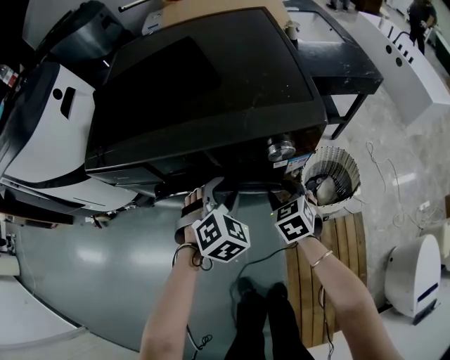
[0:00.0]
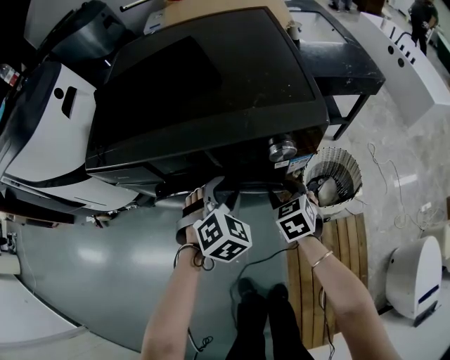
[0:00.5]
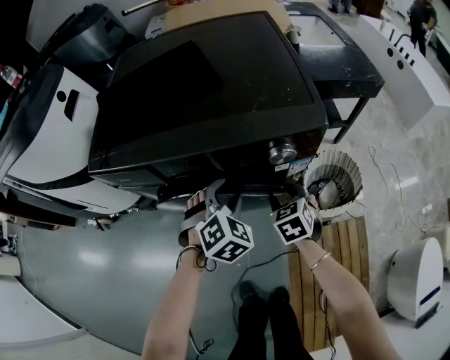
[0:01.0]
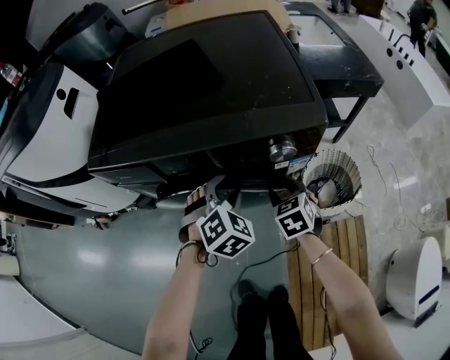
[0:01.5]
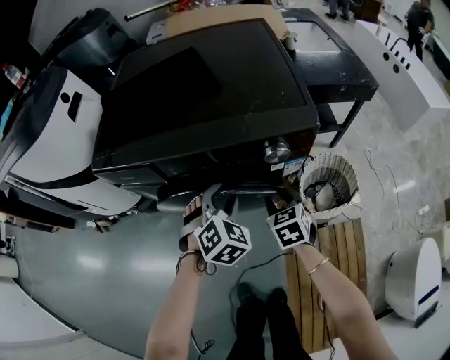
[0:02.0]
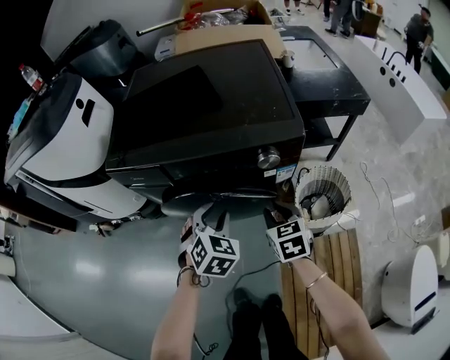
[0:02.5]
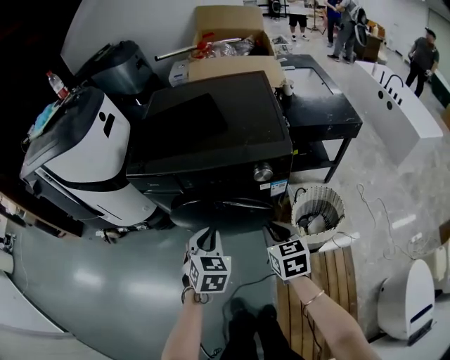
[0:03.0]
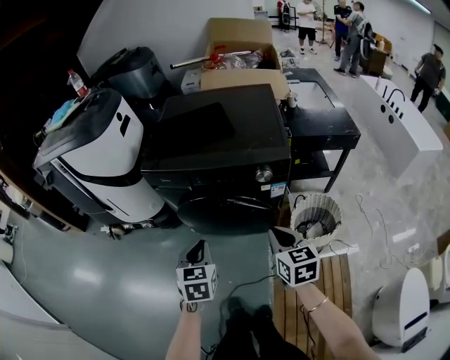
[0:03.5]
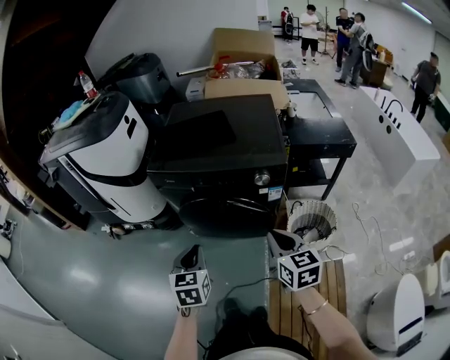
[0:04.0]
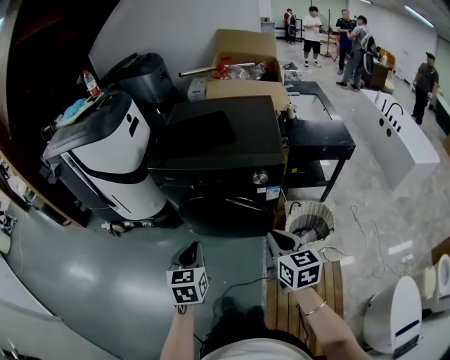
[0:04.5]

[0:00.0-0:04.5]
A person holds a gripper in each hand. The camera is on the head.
0:00.0 to 0:02.0: The grippers move only a little.
0:02.0 to 0:04.5: The right gripper is displaced upward and backward by roughly 40 cm, turns by roughly 30 degrees, and closes up. The left gripper shifts some 40 cm backward, upward and to the left, twists approximately 50 degrees counterclockwise, seen from behind, and closes up.

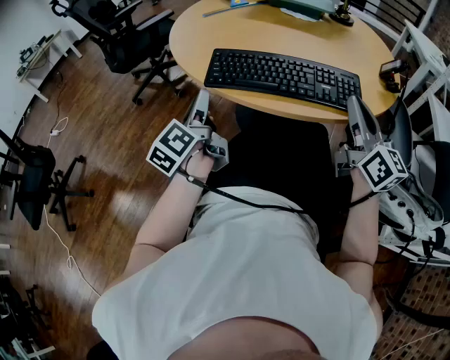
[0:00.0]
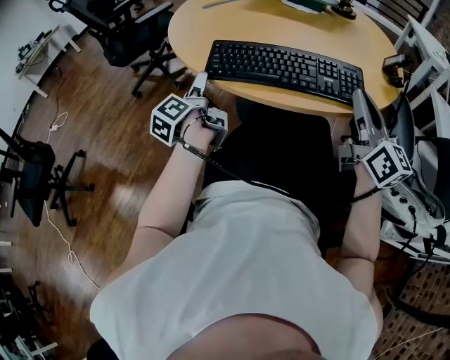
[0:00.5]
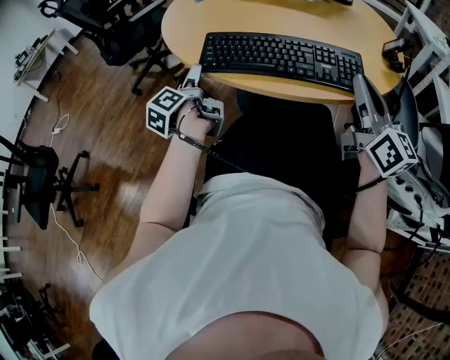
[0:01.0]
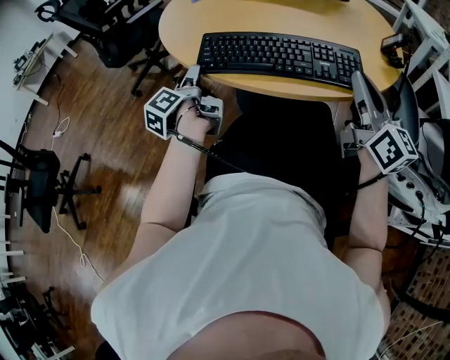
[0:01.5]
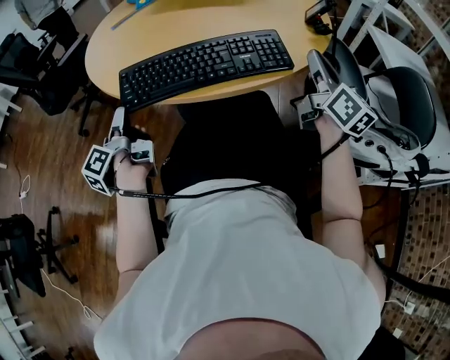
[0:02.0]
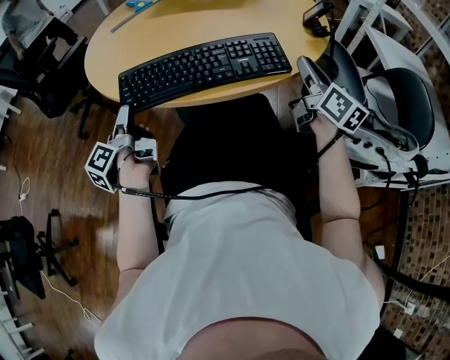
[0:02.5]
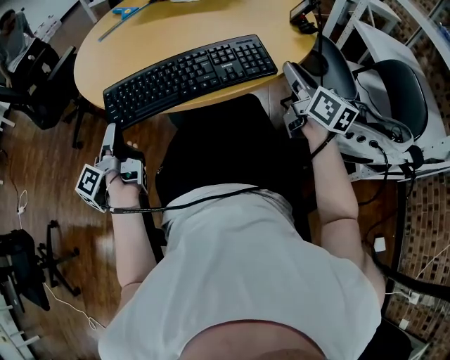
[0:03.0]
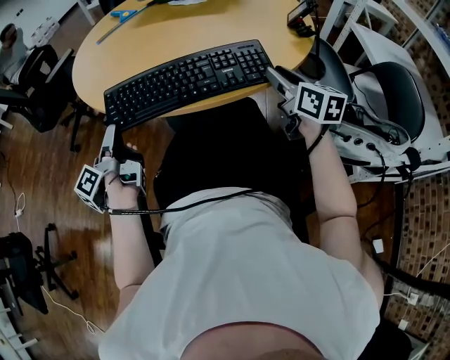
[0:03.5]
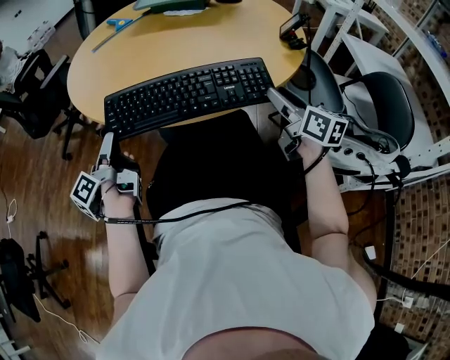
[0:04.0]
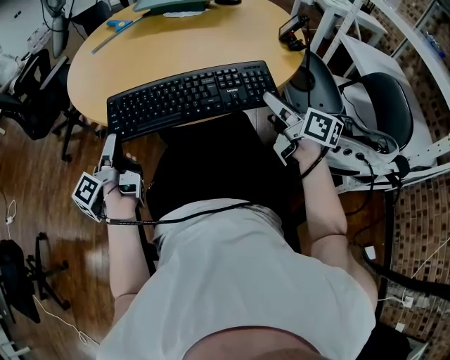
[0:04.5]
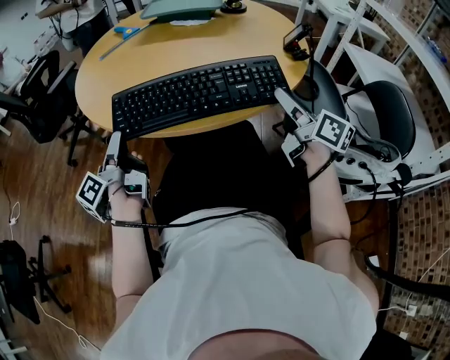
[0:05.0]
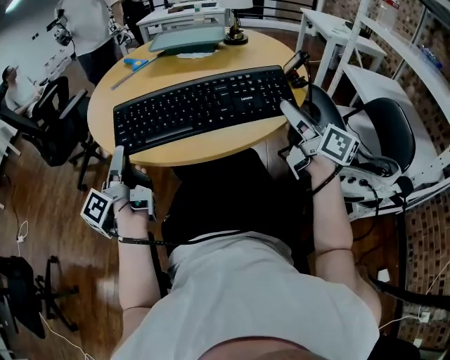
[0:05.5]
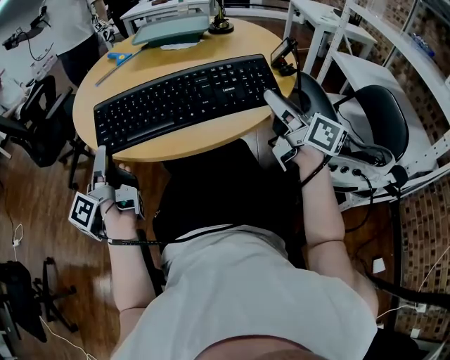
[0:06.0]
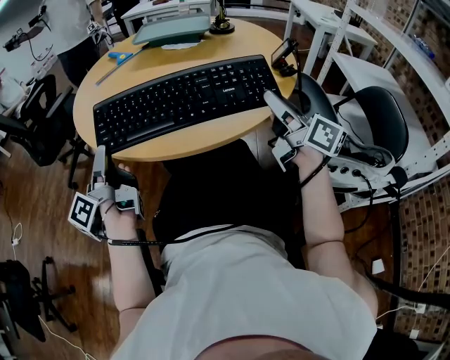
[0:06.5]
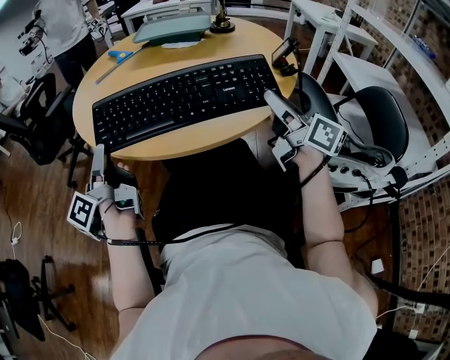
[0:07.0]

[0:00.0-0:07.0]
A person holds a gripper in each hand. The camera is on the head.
0:00.0 to 0:02.0: The right gripper shifts by about 10 cm, and changes its angle by approximately 20 degrees.
0:02.0 to 0:03.5: The right gripper goes approximately 5 cm downward, changes its angle by approximately 20 degrees, and opens.
0:03.5 to 0:05.0: The right gripper shifts by some 5 cm, and rotates about 20 degrees.
0:05.0 to 0:07.0: The right gripper goes approximately 5 cm upward.

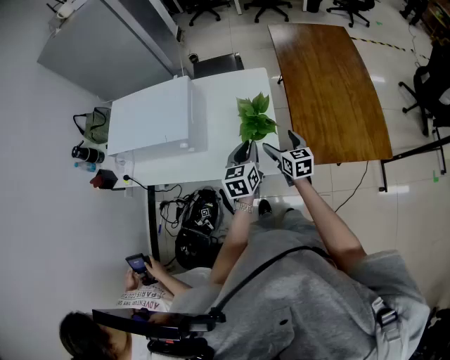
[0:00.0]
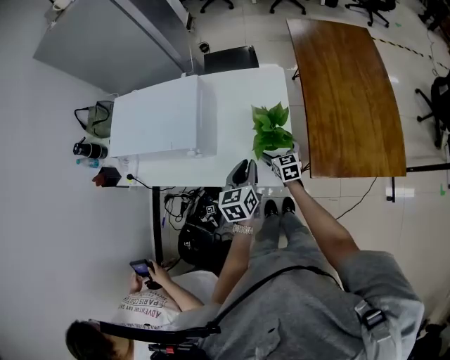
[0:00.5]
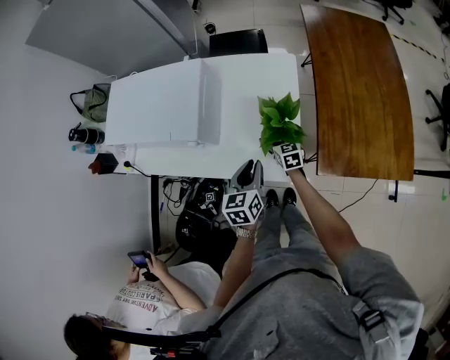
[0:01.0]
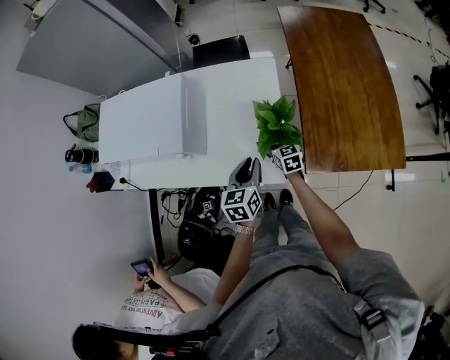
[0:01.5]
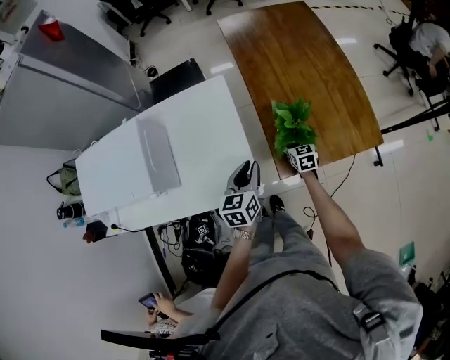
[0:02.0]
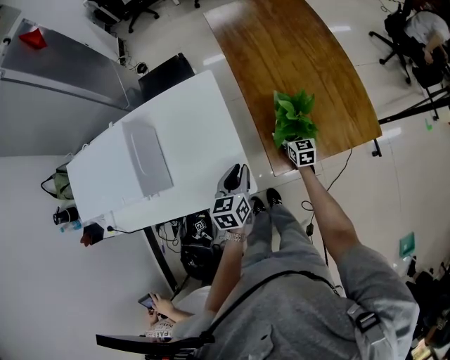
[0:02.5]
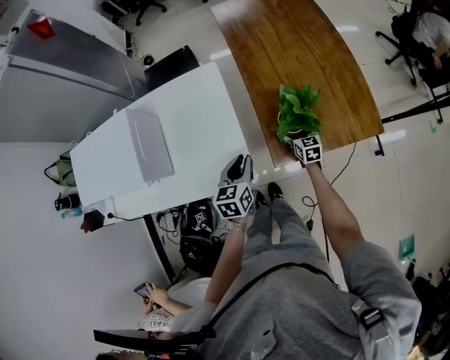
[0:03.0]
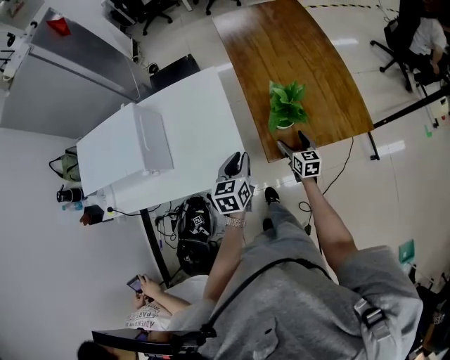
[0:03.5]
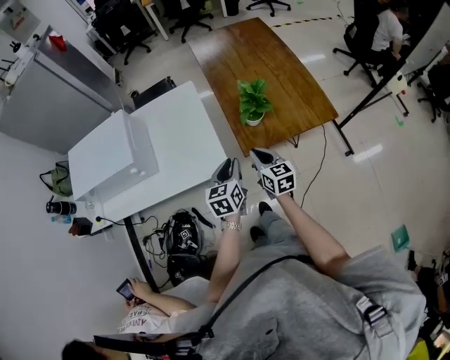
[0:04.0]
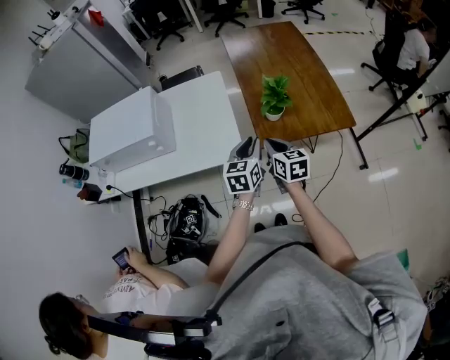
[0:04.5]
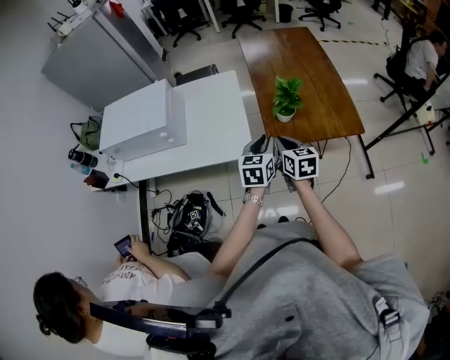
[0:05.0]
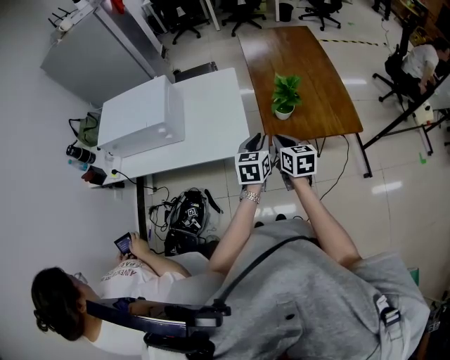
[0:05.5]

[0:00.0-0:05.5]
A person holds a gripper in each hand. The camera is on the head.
0:00.0 to 0:02.0: The right gripper travels to the right and downward by some 25 cm. The left gripper is displaced to the right by about 15 cm.
0:02.0 to 0:03.5: The right gripper shifts approximately 10 cm backward and to the right. The left gripper shifts some 5 cm backward.
0:03.5 to 0:05.5: The left gripper goes roughly 15 cm backward and upward. The right gripper heads upward, backward and to the left, covering roughly 30 cm, and closes up.

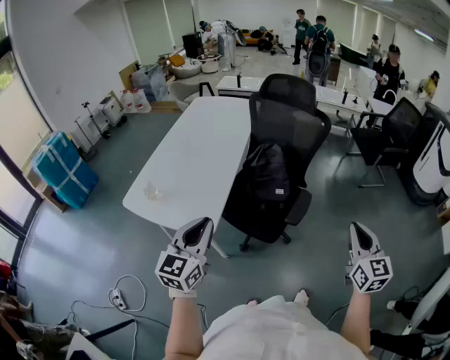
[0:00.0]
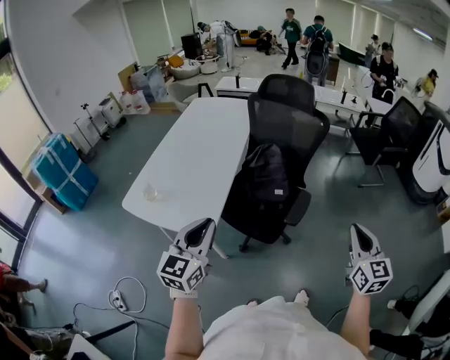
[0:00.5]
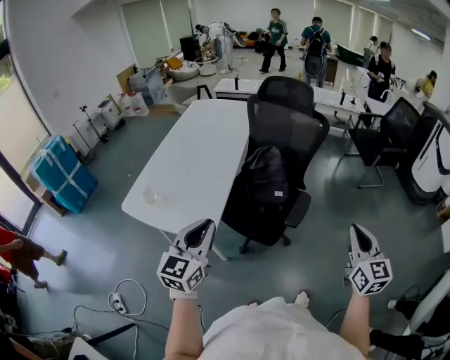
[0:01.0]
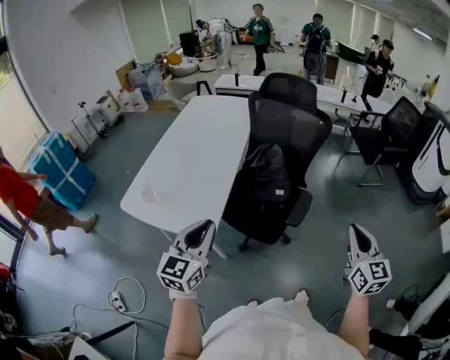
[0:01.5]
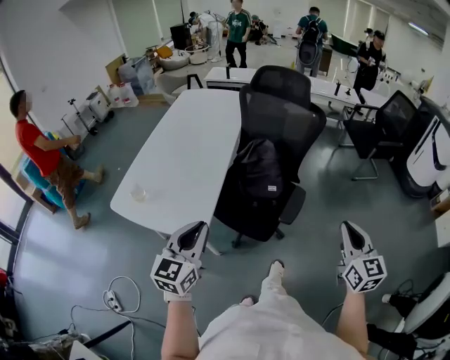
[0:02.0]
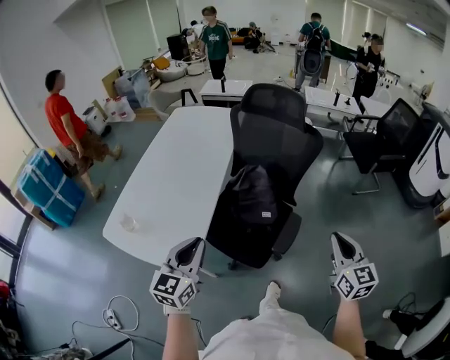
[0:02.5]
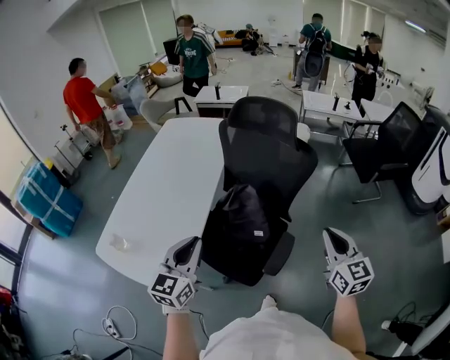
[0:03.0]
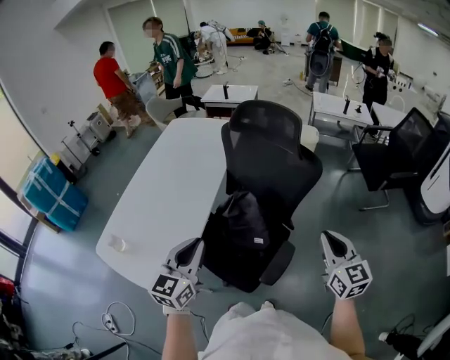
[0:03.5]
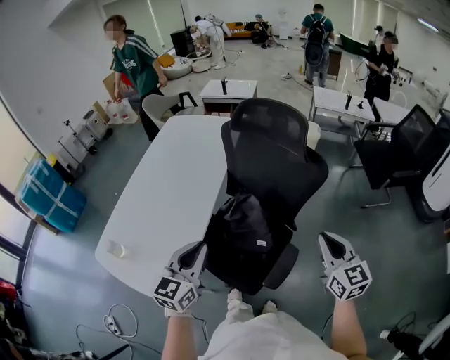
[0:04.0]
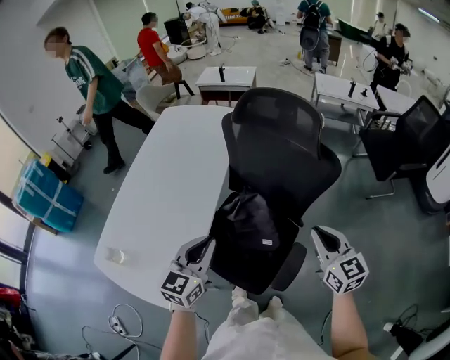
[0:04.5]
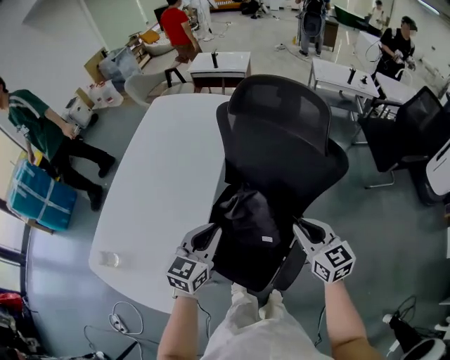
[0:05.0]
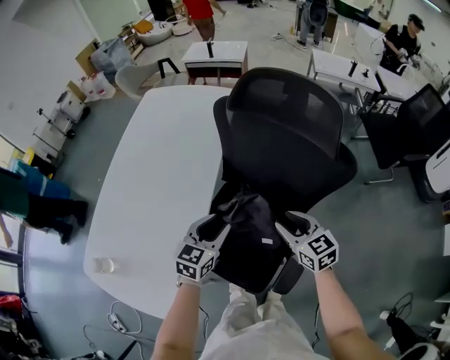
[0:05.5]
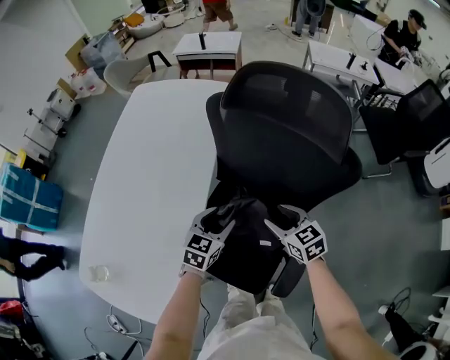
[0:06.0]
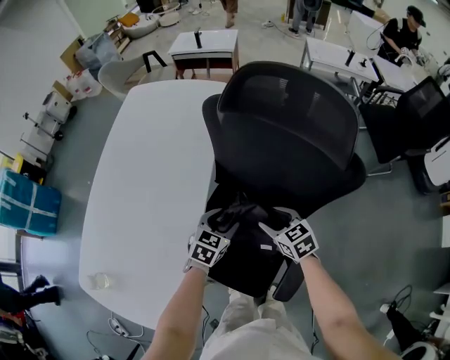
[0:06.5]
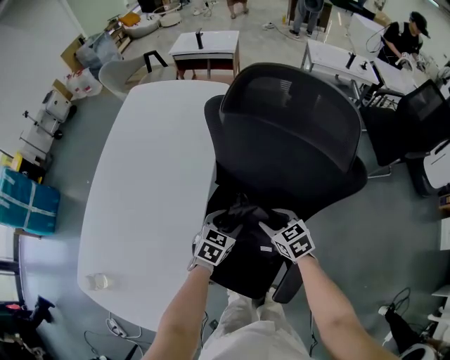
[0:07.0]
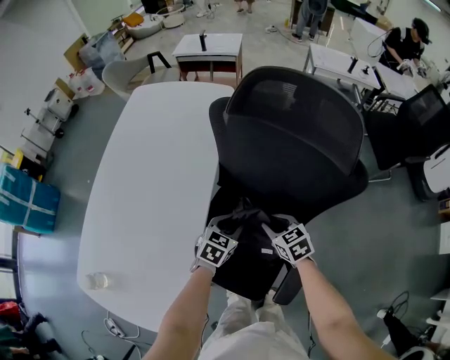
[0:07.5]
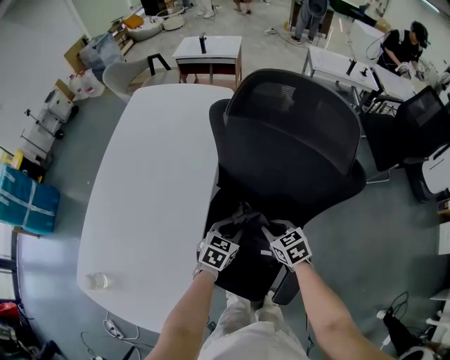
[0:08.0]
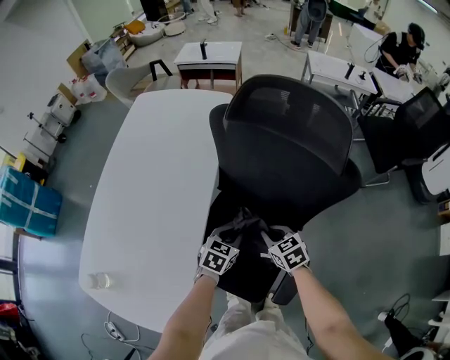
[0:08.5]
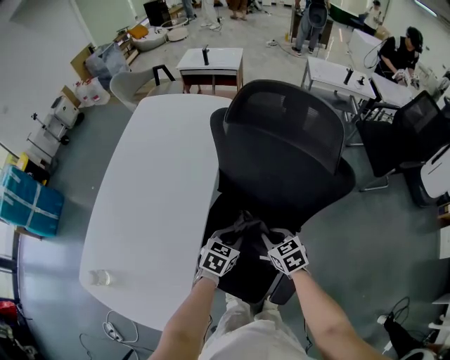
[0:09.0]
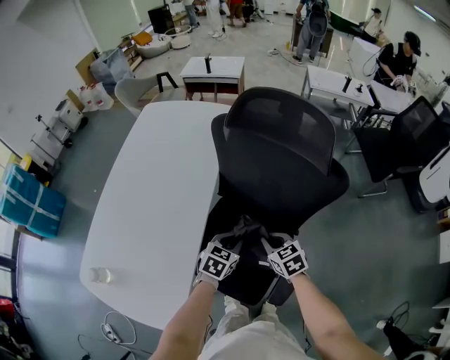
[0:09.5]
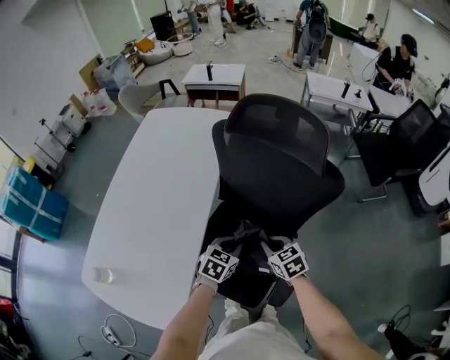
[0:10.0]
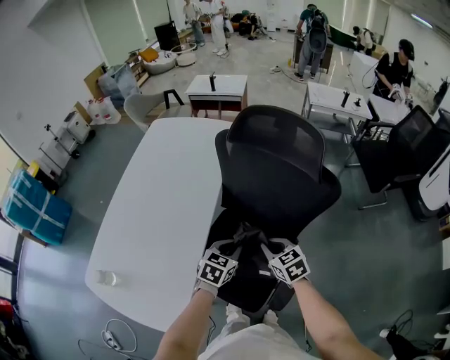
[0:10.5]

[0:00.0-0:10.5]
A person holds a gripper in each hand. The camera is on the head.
0:00.0 to 0:02.0: The grippers move only a little.
0:02.0 to 0:04.0: Both grippers move forward, some 25 cm.
0:04.0 to 0:06.5: The right gripper heads downward, forward and to the left, covering roughly 35 cm, turns by approximately 30 degrees, and opens up; the left gripper is displaced downward and forward by some 35 cm, swivels approximately 30 degrees, and opens its fingers.
0:06.5 to 0:08.5: The right gripper closes up; the left gripper closes its fingers.
0:08.5 to 0:10.5: The two grippers go roughly 10 cm upward.
